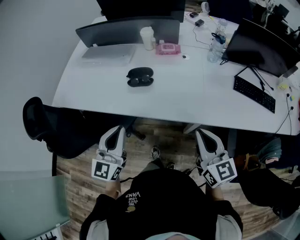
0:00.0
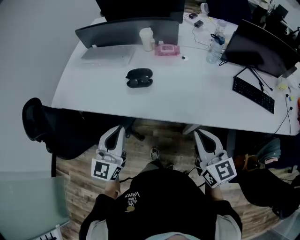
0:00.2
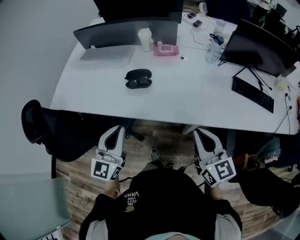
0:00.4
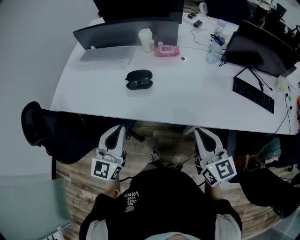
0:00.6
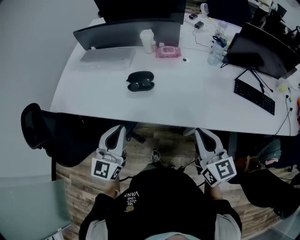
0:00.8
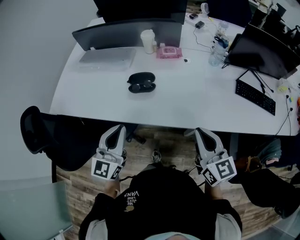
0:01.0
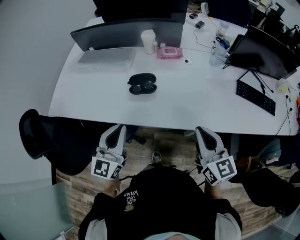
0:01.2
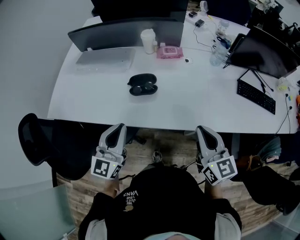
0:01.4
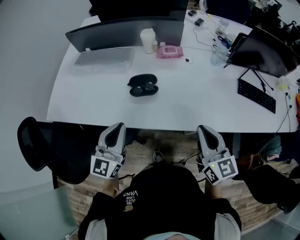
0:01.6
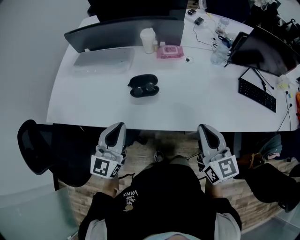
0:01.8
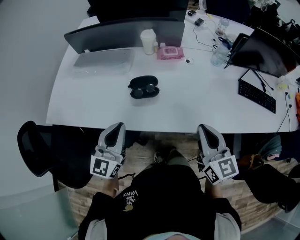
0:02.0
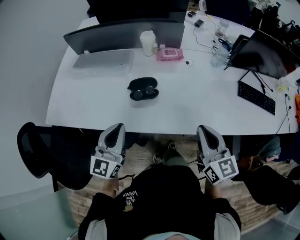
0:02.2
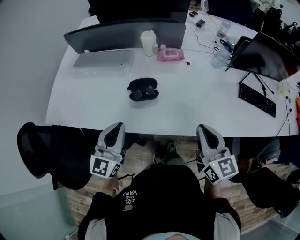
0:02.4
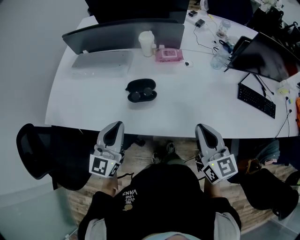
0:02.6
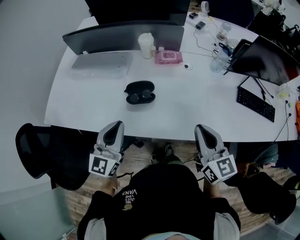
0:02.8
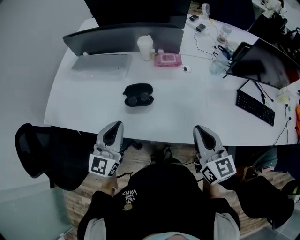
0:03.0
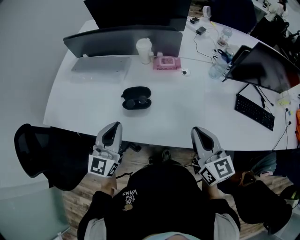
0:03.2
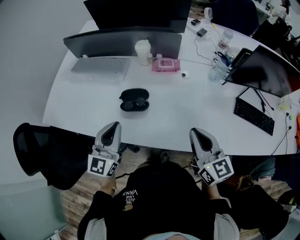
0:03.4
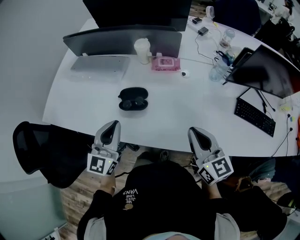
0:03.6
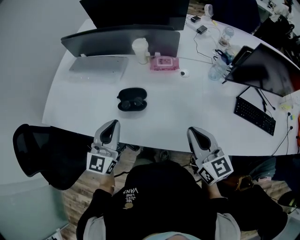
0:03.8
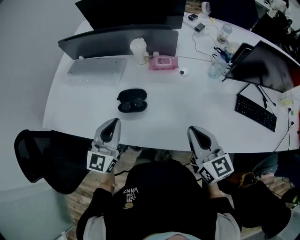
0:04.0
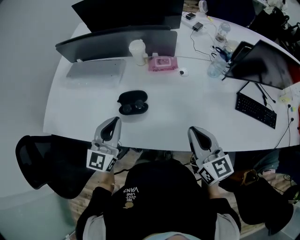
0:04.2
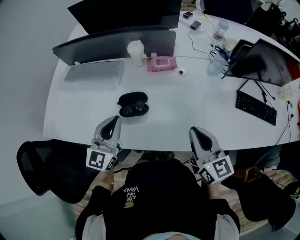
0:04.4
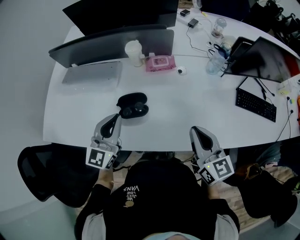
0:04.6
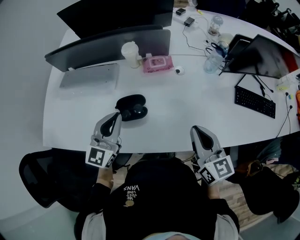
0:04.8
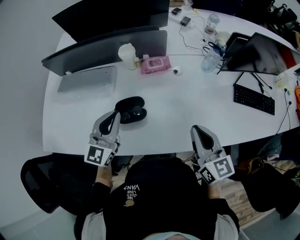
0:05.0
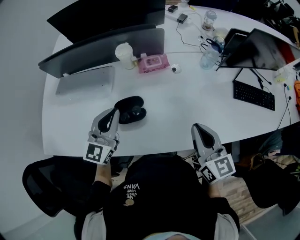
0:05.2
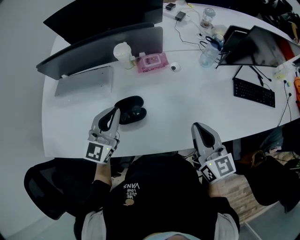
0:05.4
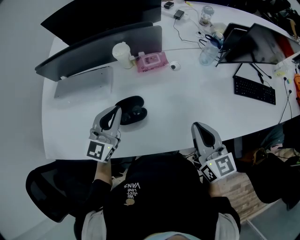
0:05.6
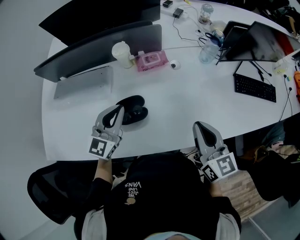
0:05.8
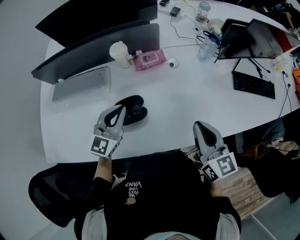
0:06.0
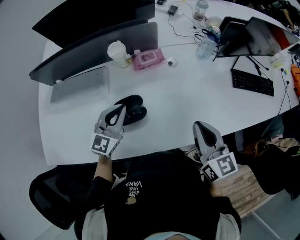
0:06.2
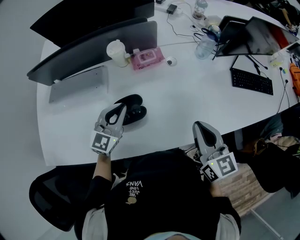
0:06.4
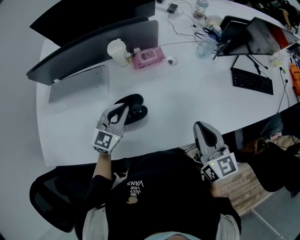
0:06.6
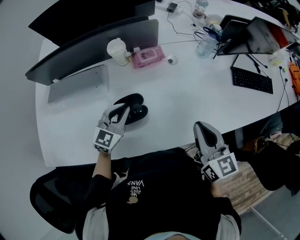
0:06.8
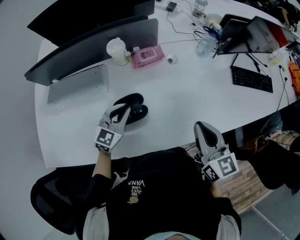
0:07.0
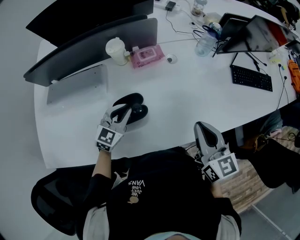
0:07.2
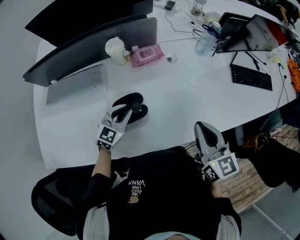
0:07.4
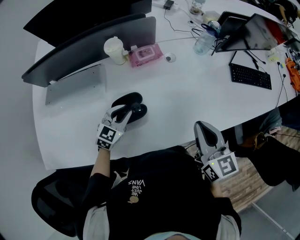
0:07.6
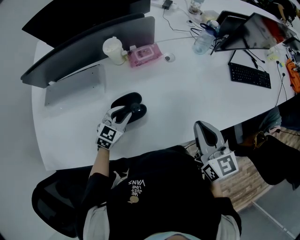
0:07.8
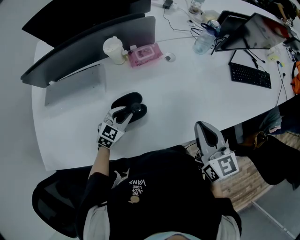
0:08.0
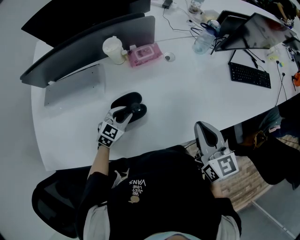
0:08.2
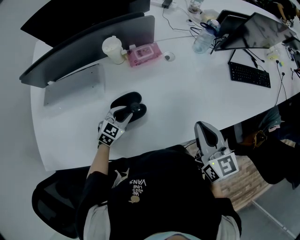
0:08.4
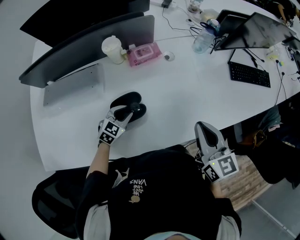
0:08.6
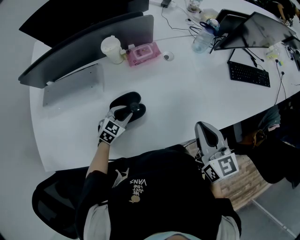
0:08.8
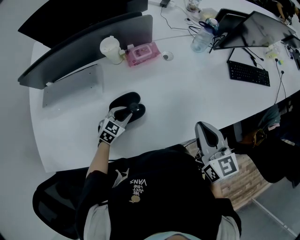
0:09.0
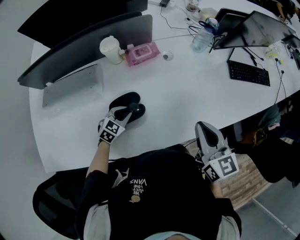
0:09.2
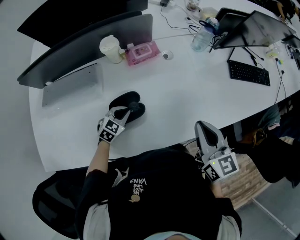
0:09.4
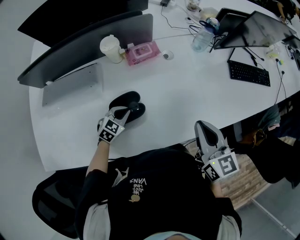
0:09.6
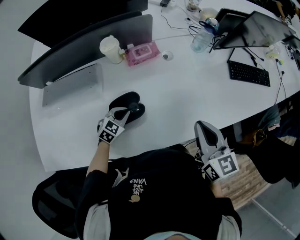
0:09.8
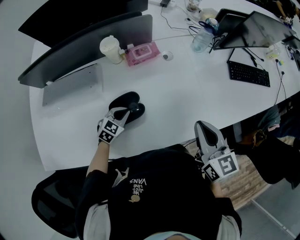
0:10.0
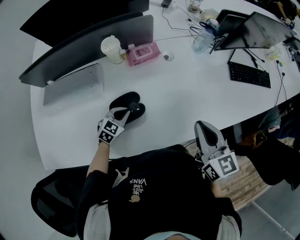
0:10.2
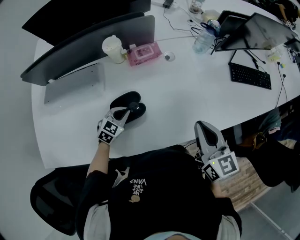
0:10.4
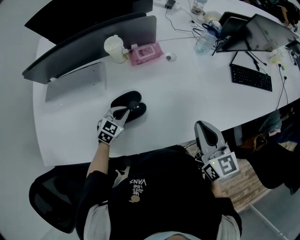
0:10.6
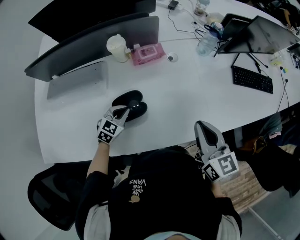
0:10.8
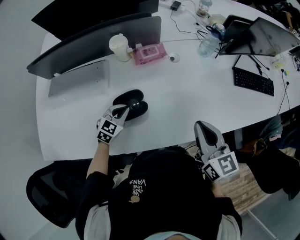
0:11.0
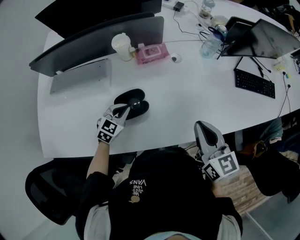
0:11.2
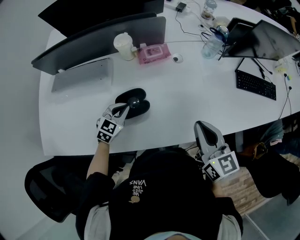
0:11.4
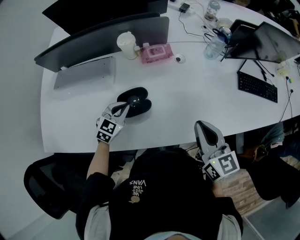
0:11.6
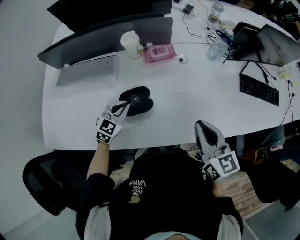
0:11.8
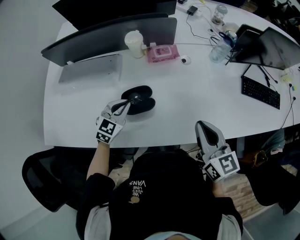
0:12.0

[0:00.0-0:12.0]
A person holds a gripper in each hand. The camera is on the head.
0:00.0 to 0:01.6: The two grippers go some 10 cm forward and to the left.
0:01.6 to 0:03.0: The grippers both shift forward by about 5 cm.
0:03.0 to 0:04.4: The left gripper moves forward, some 10 cm. Meanwhile the right gripper moves about 5 cm.
0:04.4 to 0:06.0: The left gripper is displaced forward by approximately 10 cm.
0:06.0 to 0:07.6: The left gripper travels downward by roughly 15 cm, changes its angle by roughly 20 degrees, and opens its fingers.
0:07.6 to 0:09.0: The left gripper travels downward by approximately 10 cm.
0:09.0 to 0:10.4: The left gripper closes.
0:10.4 to 0:12.0: The left gripper is displaced upward by some 10 cm.

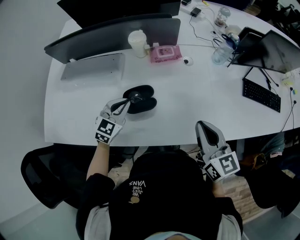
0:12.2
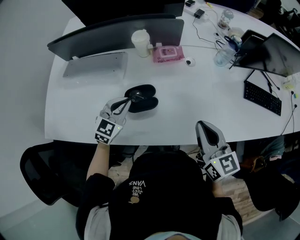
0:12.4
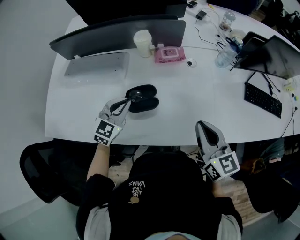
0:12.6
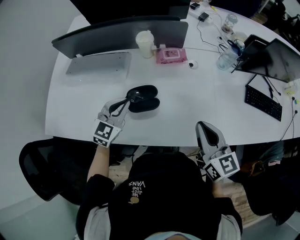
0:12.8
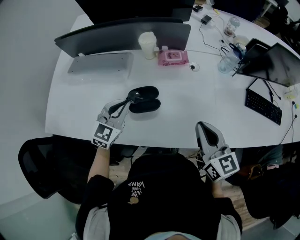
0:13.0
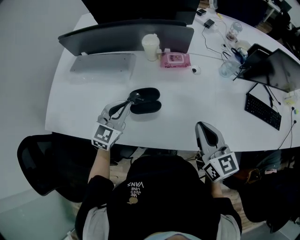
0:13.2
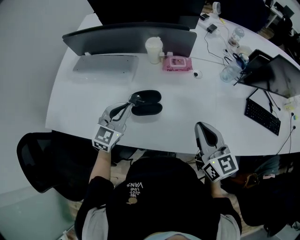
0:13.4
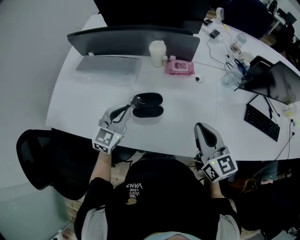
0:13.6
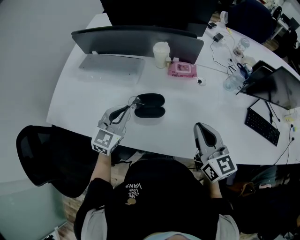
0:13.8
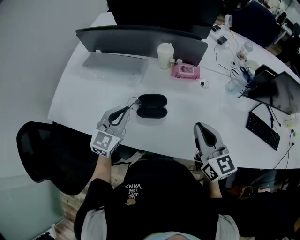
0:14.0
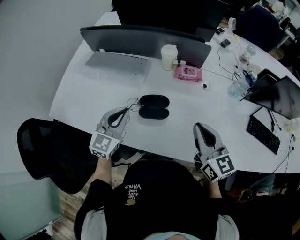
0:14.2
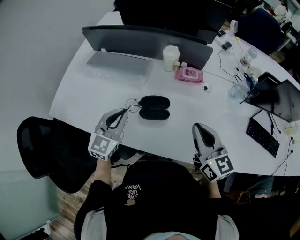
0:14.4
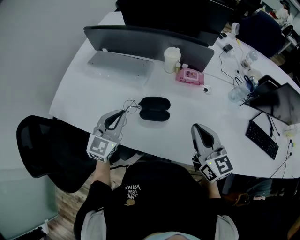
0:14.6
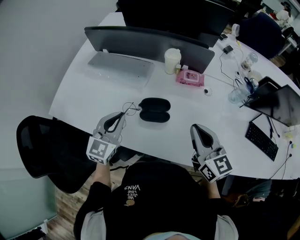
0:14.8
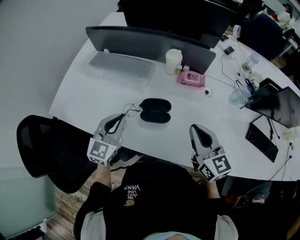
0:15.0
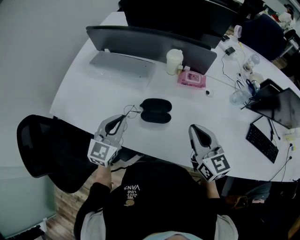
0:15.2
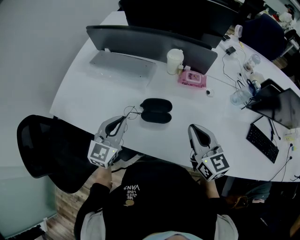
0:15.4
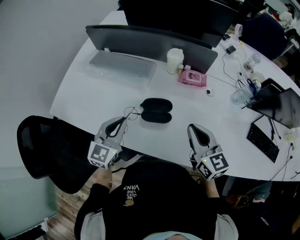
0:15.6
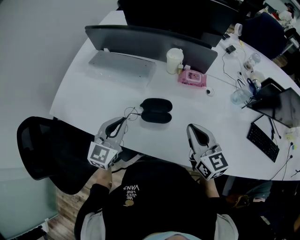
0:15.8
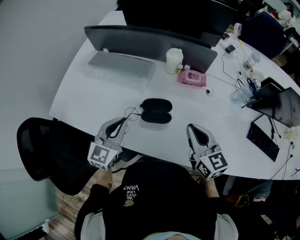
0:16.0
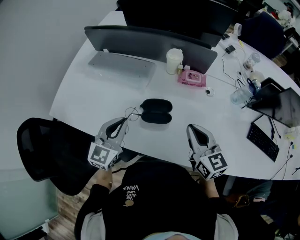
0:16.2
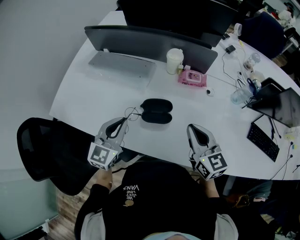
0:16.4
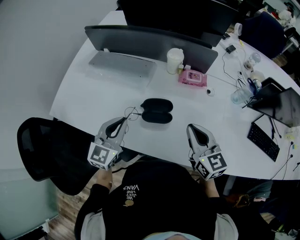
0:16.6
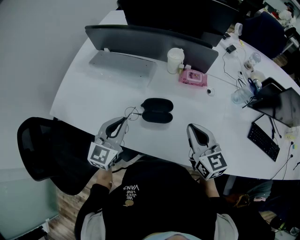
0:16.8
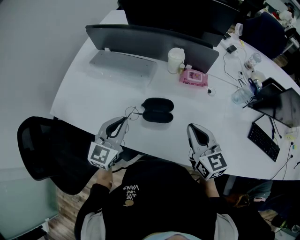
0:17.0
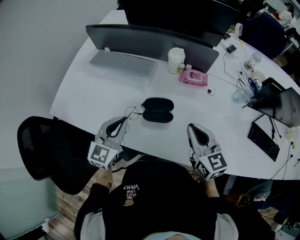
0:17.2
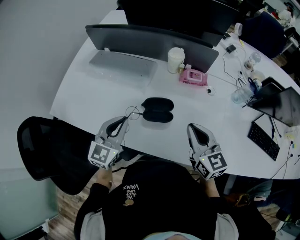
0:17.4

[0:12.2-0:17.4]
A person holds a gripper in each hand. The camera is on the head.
0:12.2 to 0:14.0: The left gripper travels upward by about 10 cm, and swivels some 20 degrees. The right gripper shifts by approximately 5 cm.
0:14.0 to 0:15.6: The right gripper shifts by roughly 5 cm.
0:15.6 to 0:17.4: Neither gripper changes place.

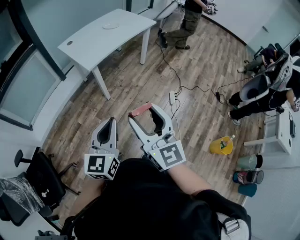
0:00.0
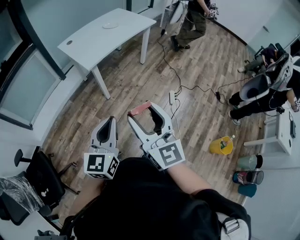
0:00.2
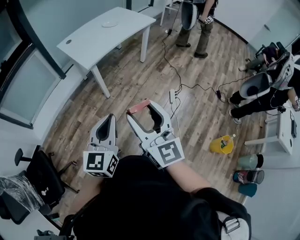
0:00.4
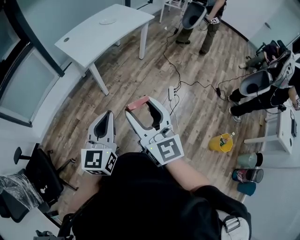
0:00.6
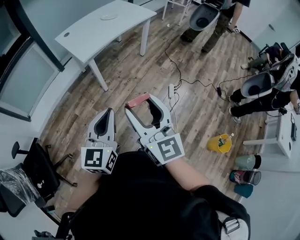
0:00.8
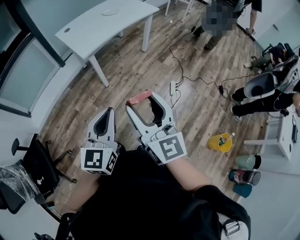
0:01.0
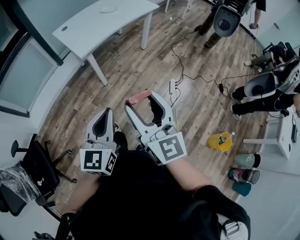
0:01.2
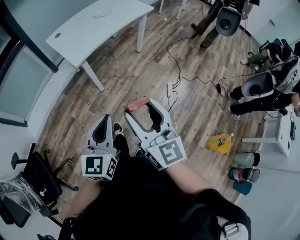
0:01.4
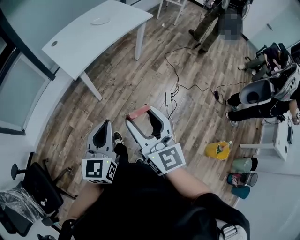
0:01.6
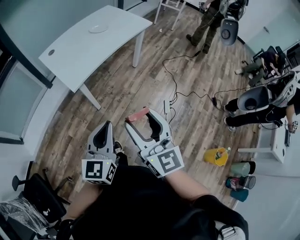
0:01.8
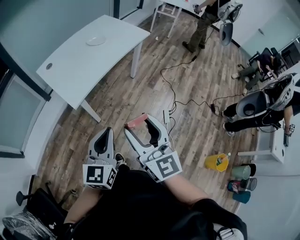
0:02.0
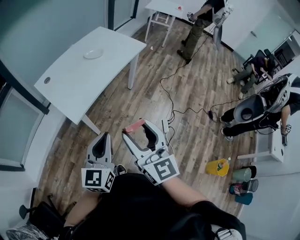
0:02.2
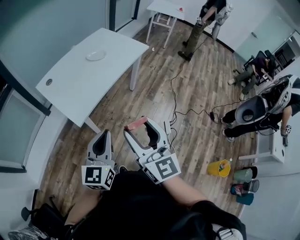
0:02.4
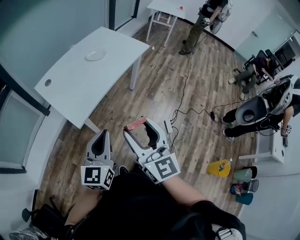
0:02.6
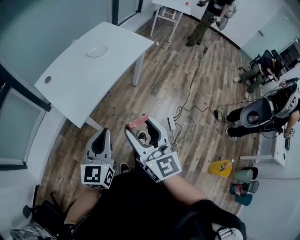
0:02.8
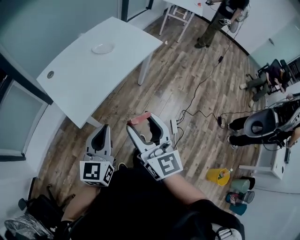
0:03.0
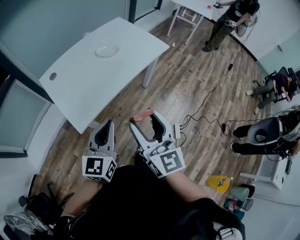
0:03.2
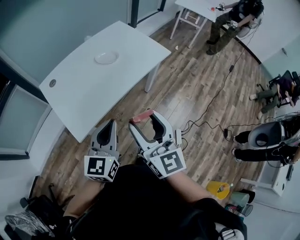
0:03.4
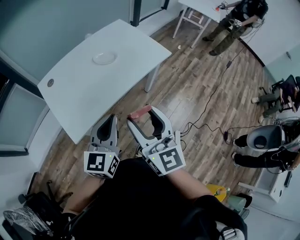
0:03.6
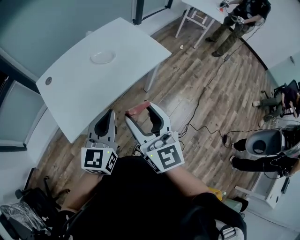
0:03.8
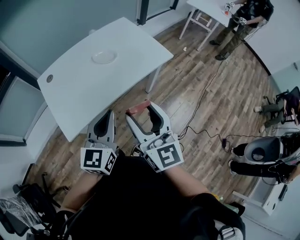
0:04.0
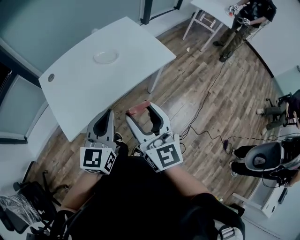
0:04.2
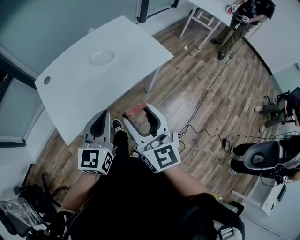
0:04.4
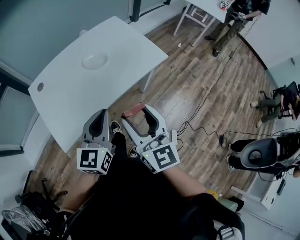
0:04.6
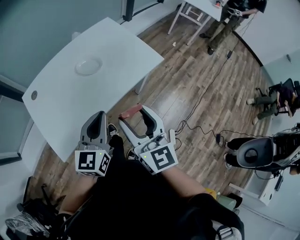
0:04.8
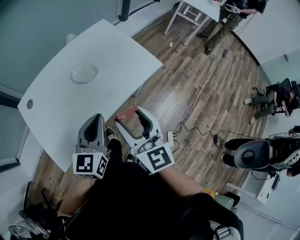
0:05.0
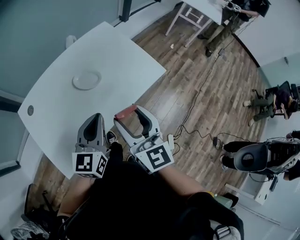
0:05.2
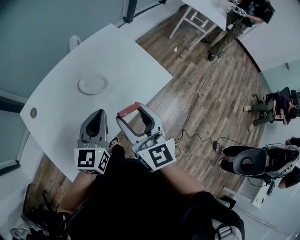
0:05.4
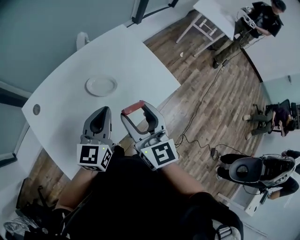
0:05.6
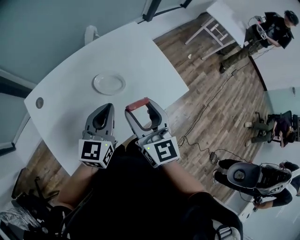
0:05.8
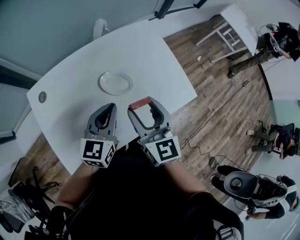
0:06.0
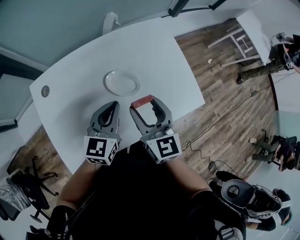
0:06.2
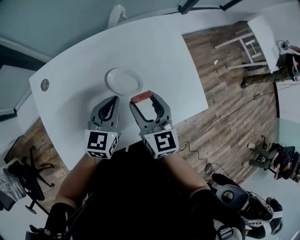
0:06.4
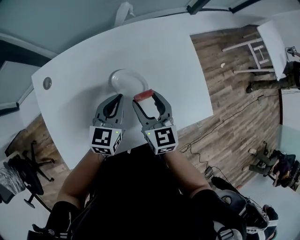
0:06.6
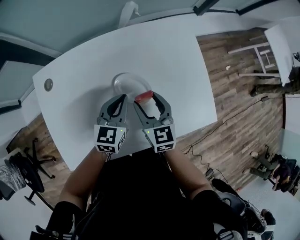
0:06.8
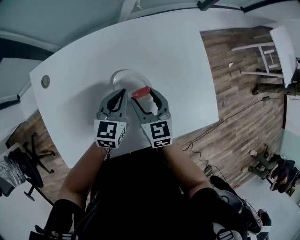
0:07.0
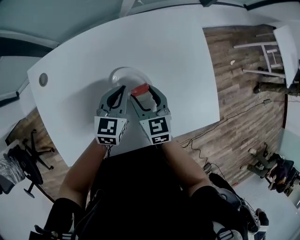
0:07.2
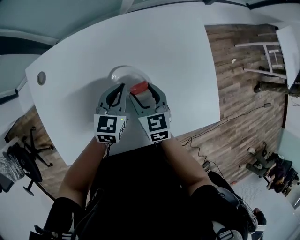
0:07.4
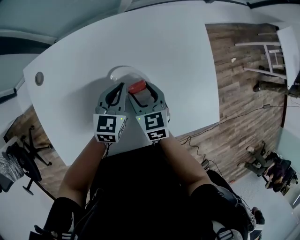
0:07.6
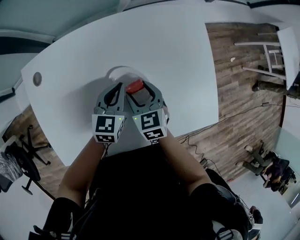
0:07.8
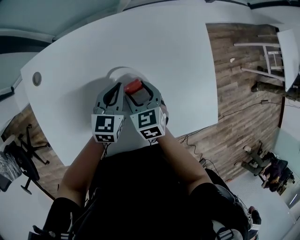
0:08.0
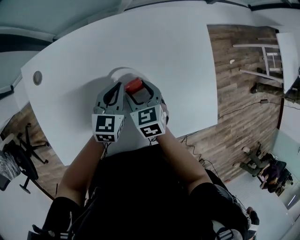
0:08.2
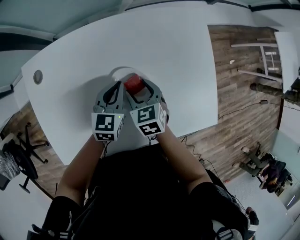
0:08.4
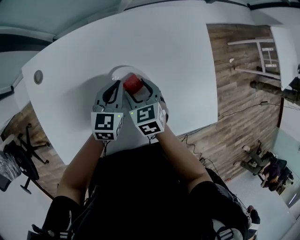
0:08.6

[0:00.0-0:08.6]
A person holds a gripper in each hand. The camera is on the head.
0:00.0 to 0:01.4: The two grippers go roughly 10 cm forward.
0:01.4 to 0:02.8: The grippers both shift forward by roughly 30 cm.
0:02.8 to 0:04.4: Both grippers travel together forward and to the right, some 25 cm.
0:04.4 to 0:05.8: Both grippers travel together forward, approximately 25 cm.
0:05.8 to 0:07.2: The grippers both shift downward and forward by approximately 25 cm. The right gripper changes its angle by some 30 degrees; the left gripper swivels roughly 20 degrees.
0:07.2 to 0:08.6: The grippers stay close to where they were, moving slightly.
